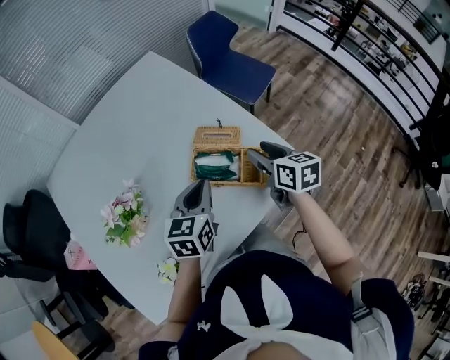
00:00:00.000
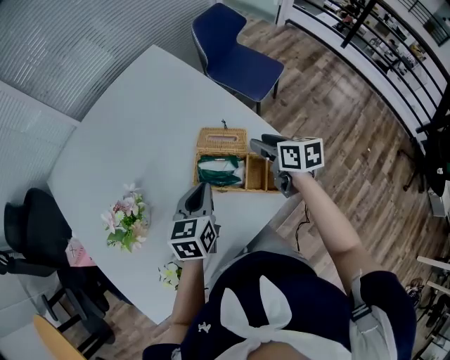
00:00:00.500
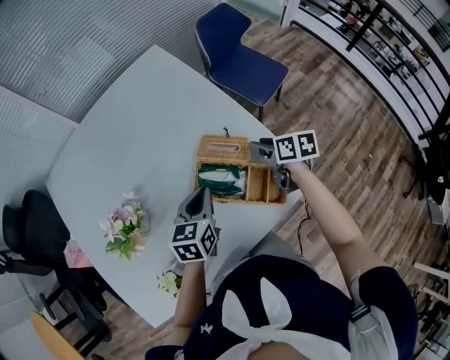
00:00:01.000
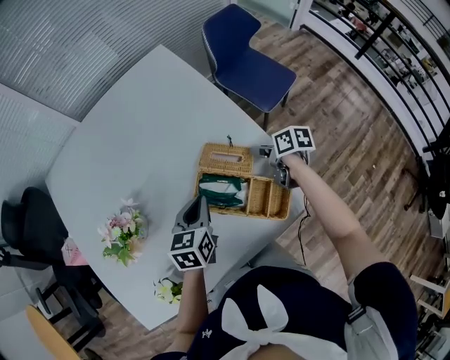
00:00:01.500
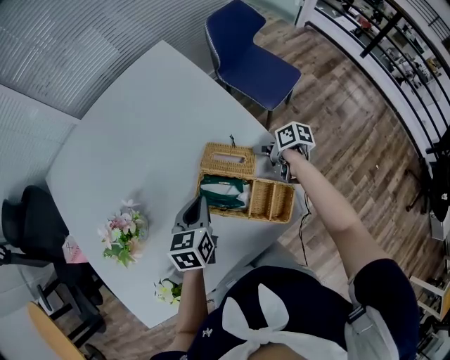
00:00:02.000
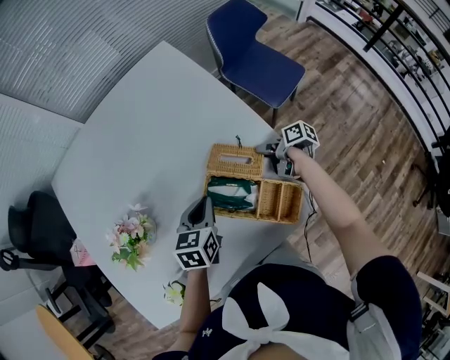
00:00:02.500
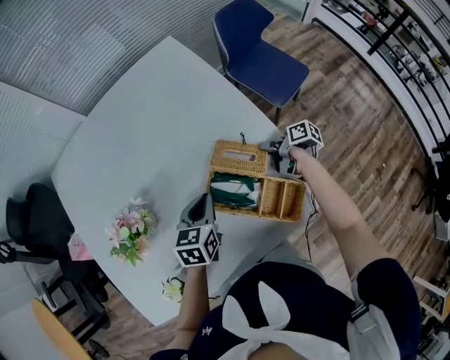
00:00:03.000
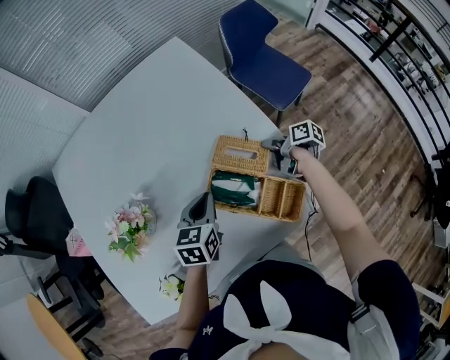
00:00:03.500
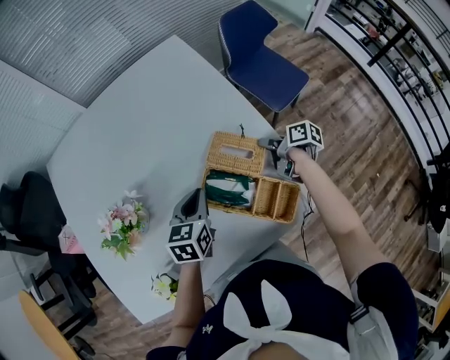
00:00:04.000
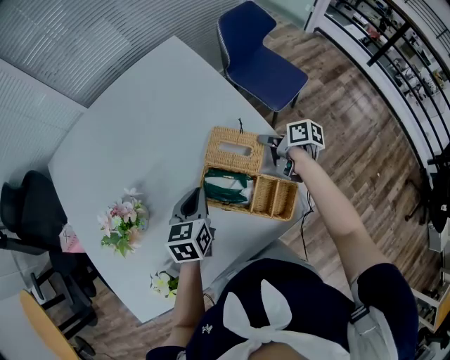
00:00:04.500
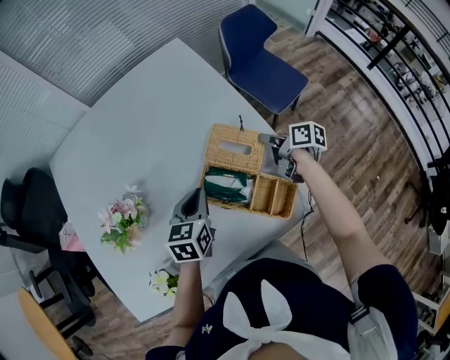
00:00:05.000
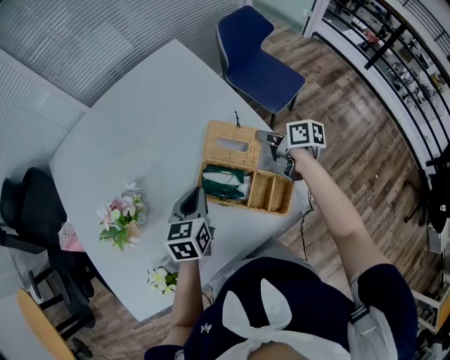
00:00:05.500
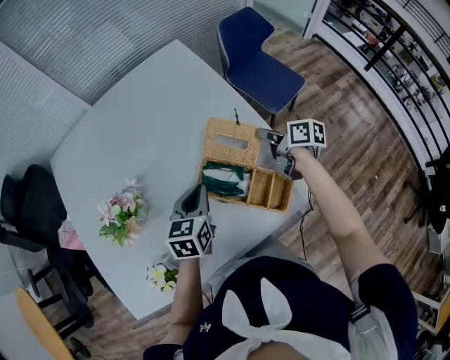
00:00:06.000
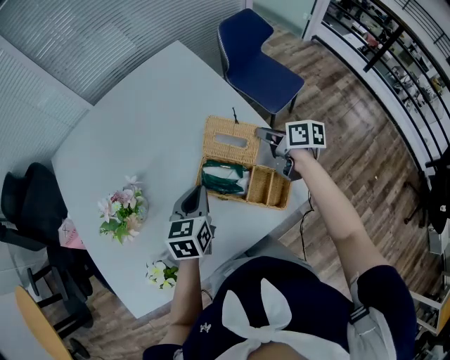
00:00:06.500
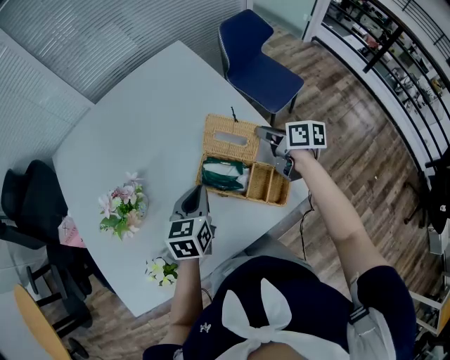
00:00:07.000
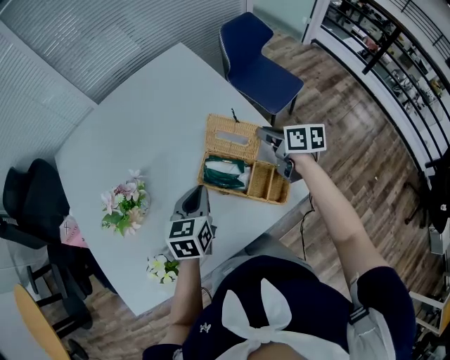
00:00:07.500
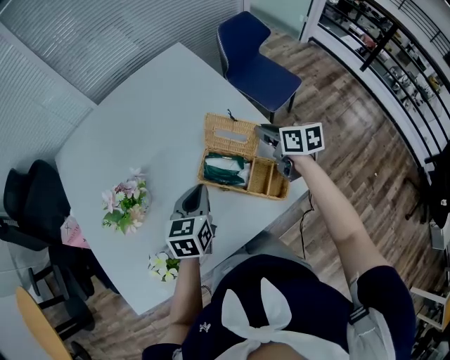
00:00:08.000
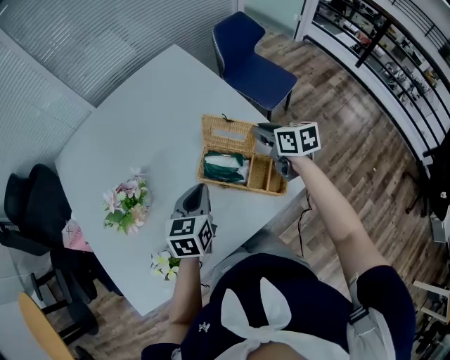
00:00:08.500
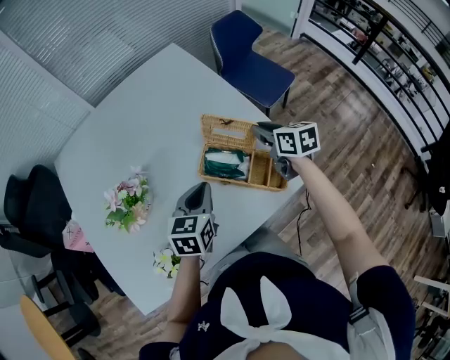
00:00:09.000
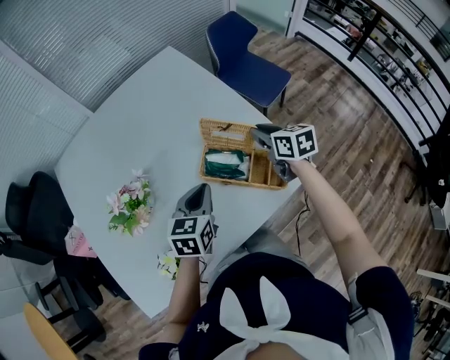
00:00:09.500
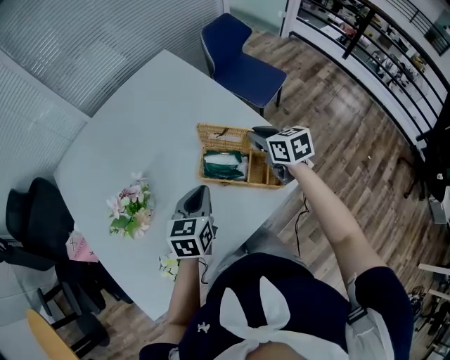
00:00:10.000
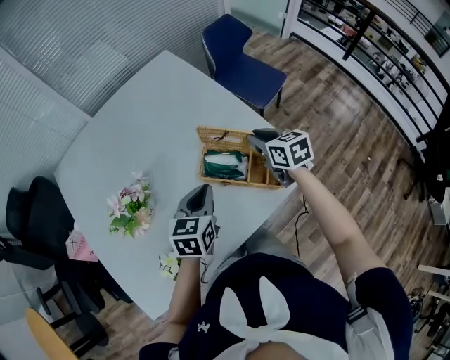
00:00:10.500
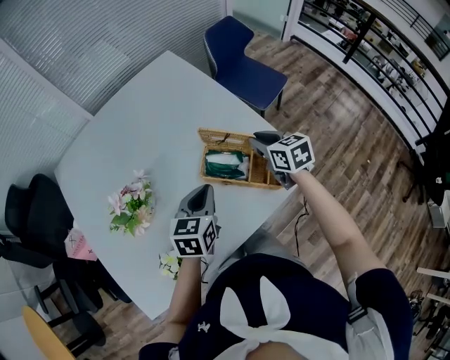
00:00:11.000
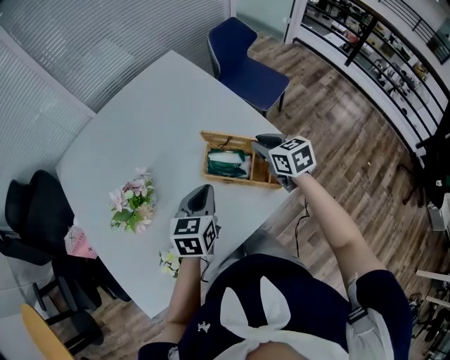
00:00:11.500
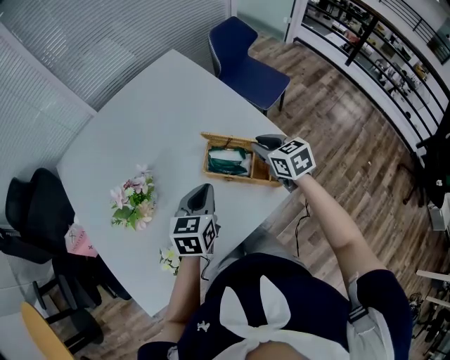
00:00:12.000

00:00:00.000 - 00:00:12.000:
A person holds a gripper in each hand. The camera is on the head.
00:00:00.000 - 00:00:02.000: The right gripper moves downward and forward, some 20 cm, and changes its angle by approximately 40 degrees; the left gripper travels downward and forward by roughly 10 cm.
00:00:02.000 - 00:00:04.000: The right gripper closes its fingers.
00:00:04.000 - 00:00:06.000: The right gripper travels upward by approximately 10 cm, and changes its angle by roughly 20 degrees.
00:00:06.000 - 00:00:08.000: The right gripper changes place by roughly 5 cm, and swivels some 20 degrees.
00:00:08.000 - 00:00:10.000: The grippers stay close to where they were, moving slightly.
00:00:10.000 - 00:00:12.000: The grippers make only small movements.

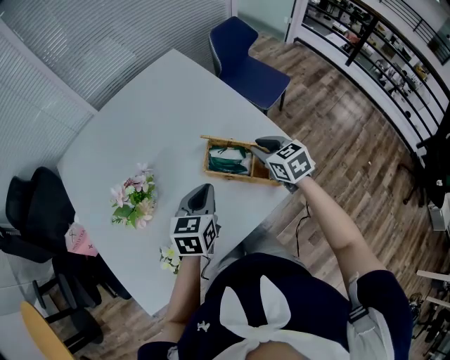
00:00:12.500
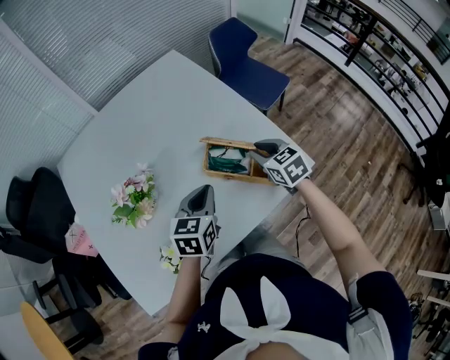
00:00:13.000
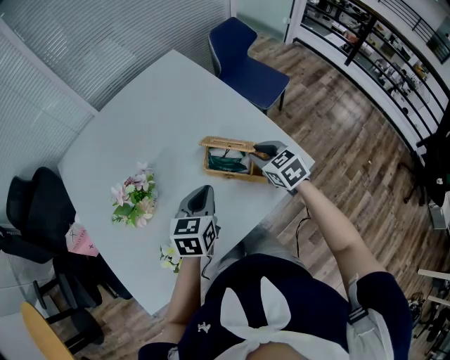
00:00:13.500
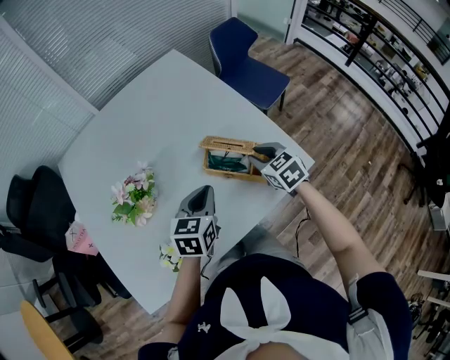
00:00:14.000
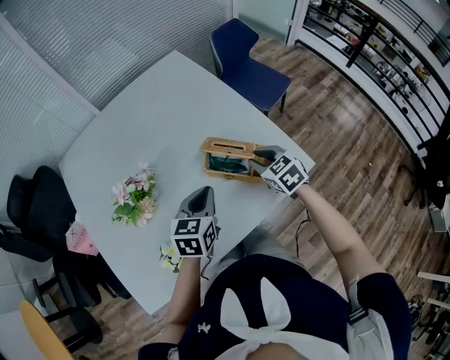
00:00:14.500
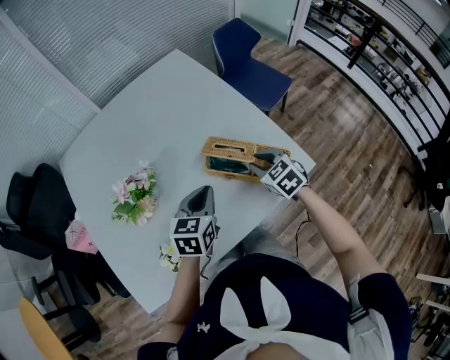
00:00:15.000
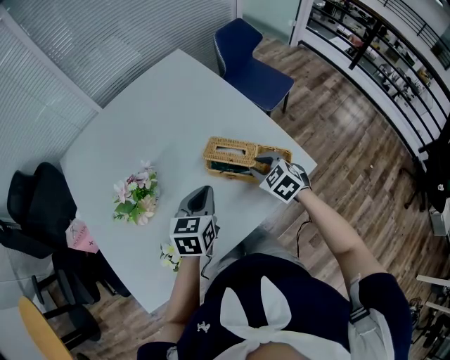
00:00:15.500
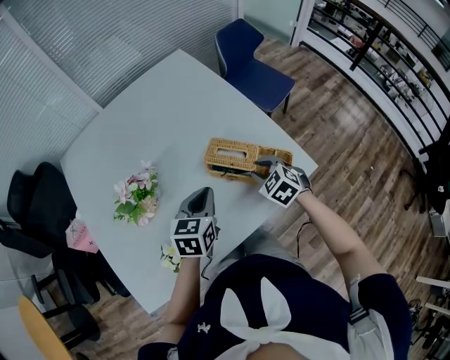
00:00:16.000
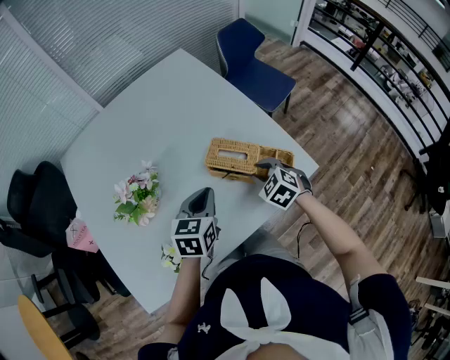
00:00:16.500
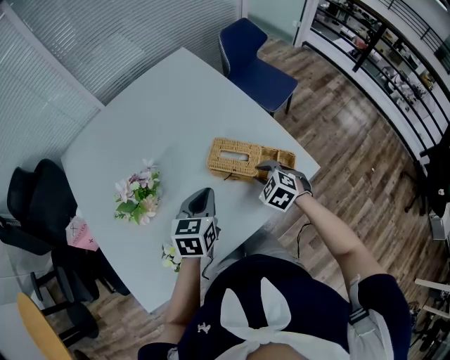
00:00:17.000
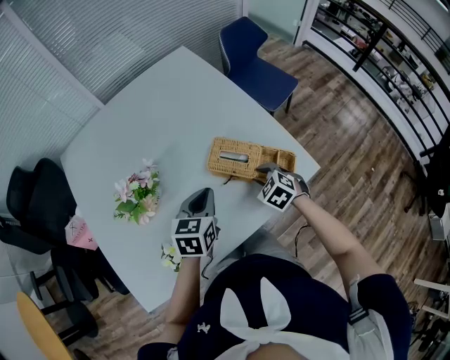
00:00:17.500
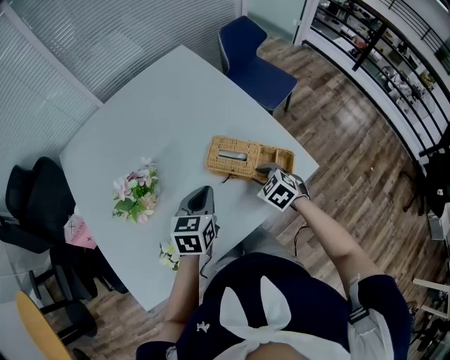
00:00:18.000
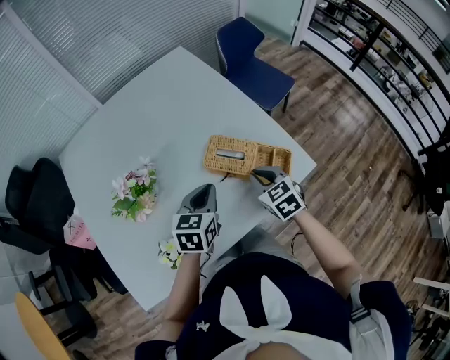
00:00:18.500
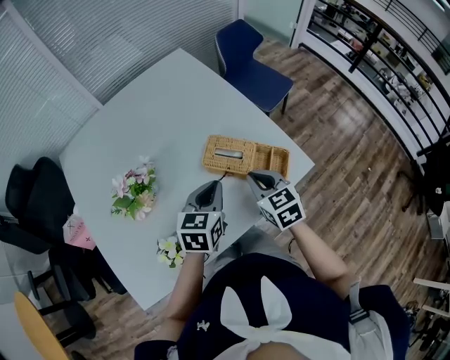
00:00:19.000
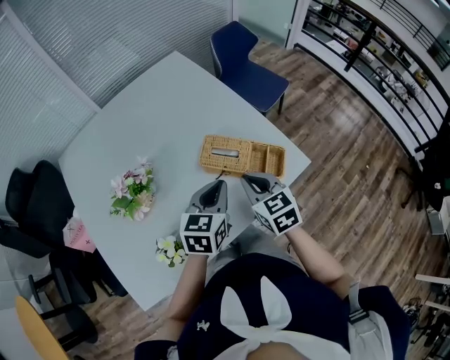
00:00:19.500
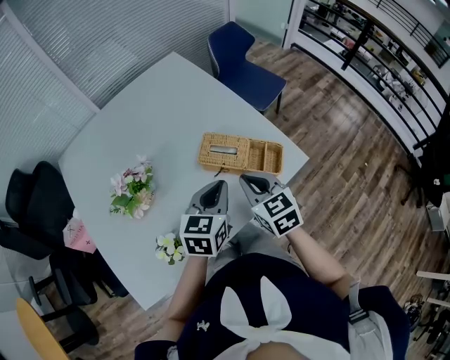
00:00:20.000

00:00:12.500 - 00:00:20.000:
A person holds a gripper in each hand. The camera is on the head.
00:00:12.500 - 00:00:14.500: The grippers stay close to where they were, moving slightly.
00:00:14.500 - 00:00:16.500: The right gripper moves about 5 cm, and turns by some 20 degrees.
00:00:16.500 - 00:00:18.000: The grippers stay close to where they were, moving slightly.
00:00:18.000 - 00:00:20.000: The left gripper heads to the right and upward, covering approximately 10 cm, while the right gripper is displaced upward and backward by roughly 15 cm, swivels about 30 degrees, and closes up.

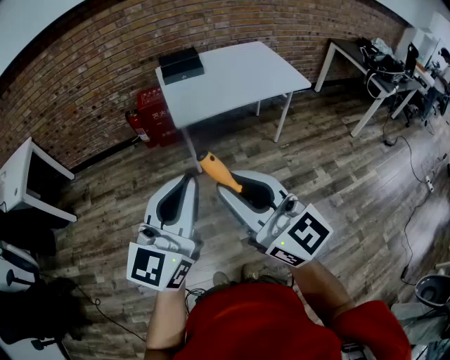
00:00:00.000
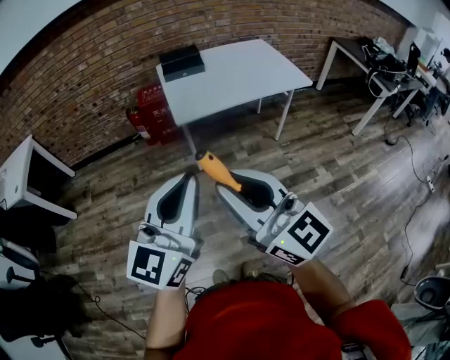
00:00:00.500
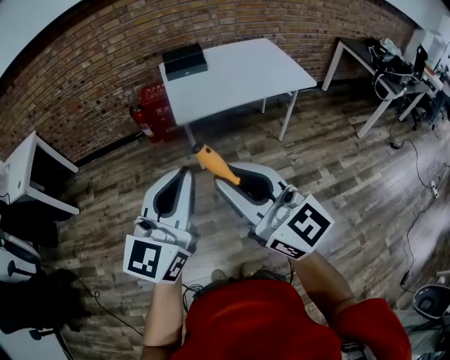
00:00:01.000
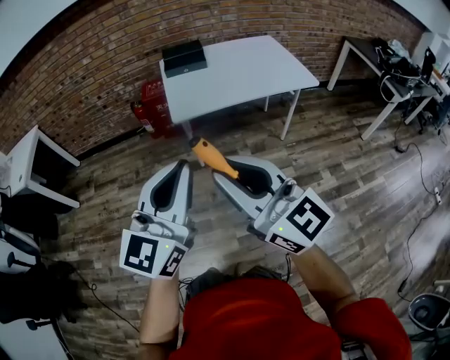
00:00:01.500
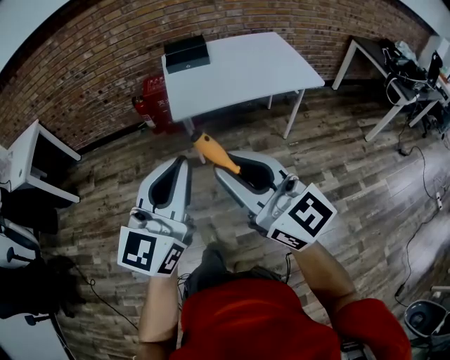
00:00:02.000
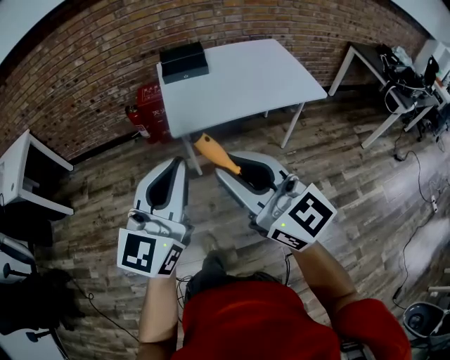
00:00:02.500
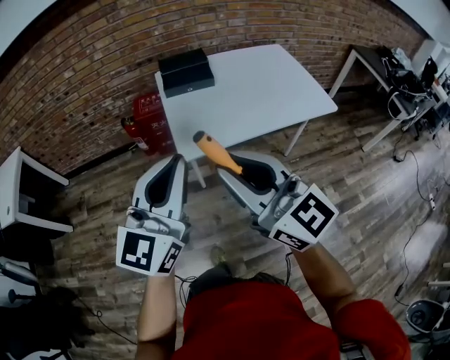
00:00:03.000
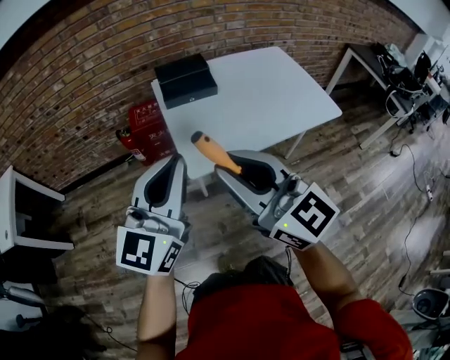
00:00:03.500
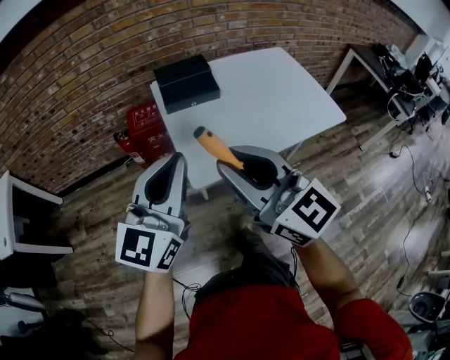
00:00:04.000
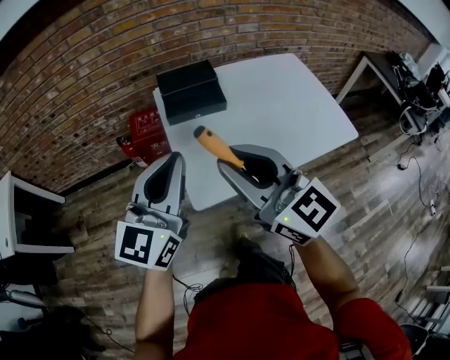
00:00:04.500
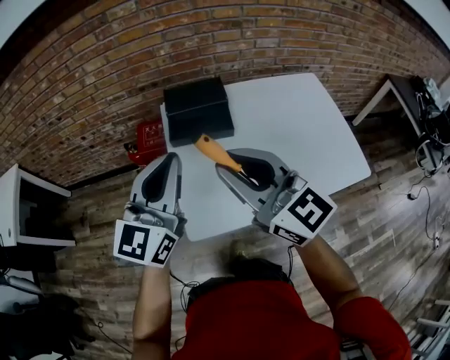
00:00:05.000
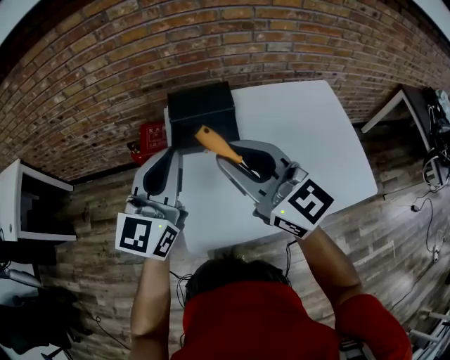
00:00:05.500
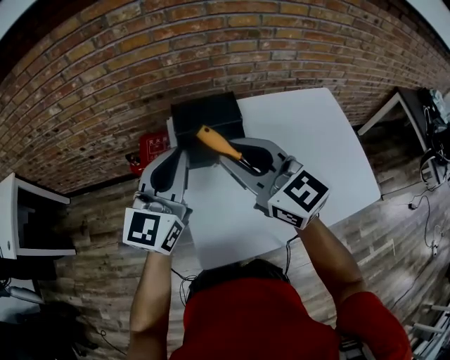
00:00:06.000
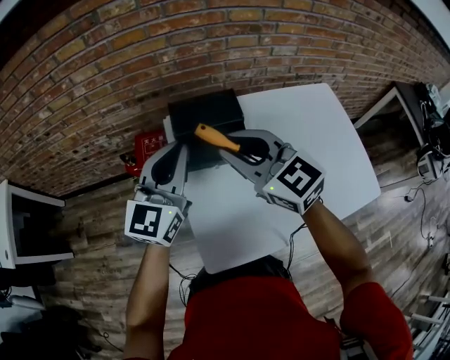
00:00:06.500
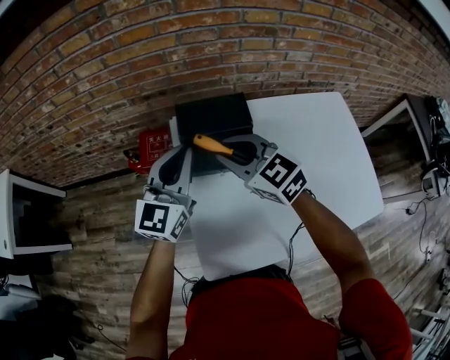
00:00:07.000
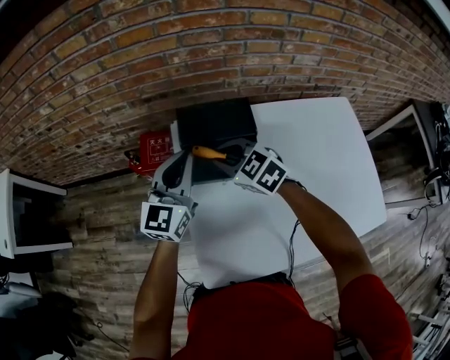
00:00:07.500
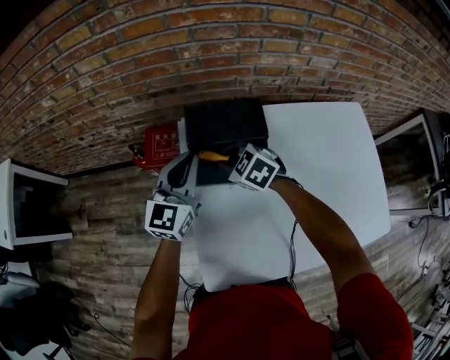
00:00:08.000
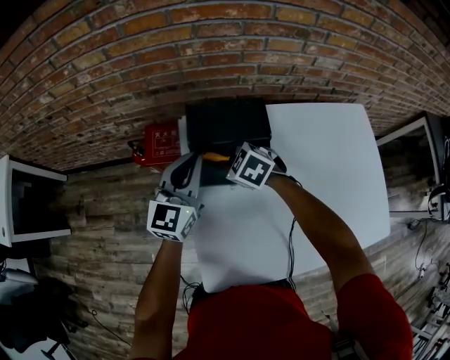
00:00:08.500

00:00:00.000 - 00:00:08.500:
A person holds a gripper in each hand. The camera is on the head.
00:00:00.000 - 00:00:02.000: The left gripper heads to the right, covering about 5 cm. The right gripper is displaced to the right and forward by approximately 10 cm.
00:00:02.000 - 00:00:04.000: Both grippers move forward, roughly 40 cm.
00:00:04.000 - 00:00:06.500: Both grippers move forward, some 40 cm. The right gripper swivels approximately 20 degrees.
00:00:06.500 - 00:00:08.500: The right gripper is displaced downward and forward by approximately 30 cm, and angles its fingers downward, by approximately 40 degrees. The left gripper goes approximately 15 cm downward and forward.
